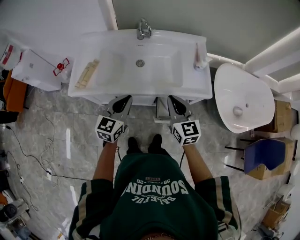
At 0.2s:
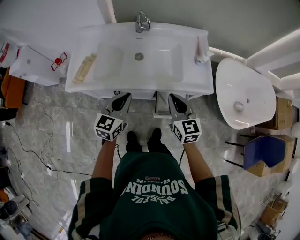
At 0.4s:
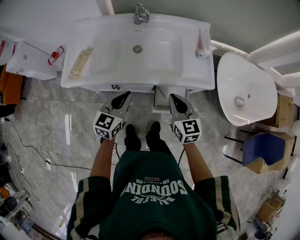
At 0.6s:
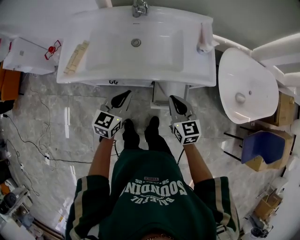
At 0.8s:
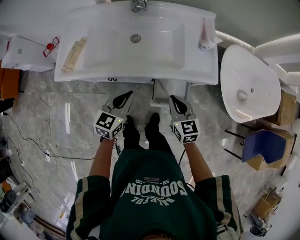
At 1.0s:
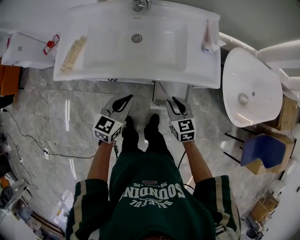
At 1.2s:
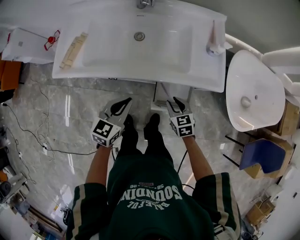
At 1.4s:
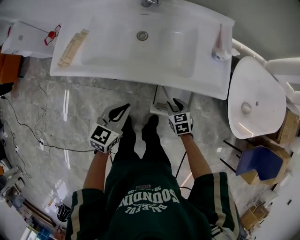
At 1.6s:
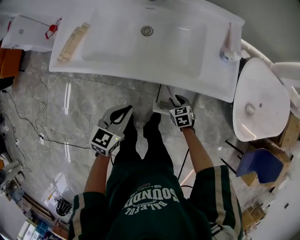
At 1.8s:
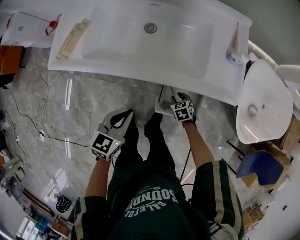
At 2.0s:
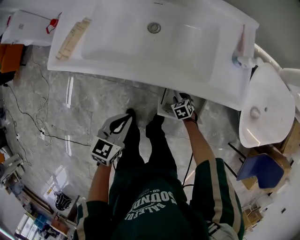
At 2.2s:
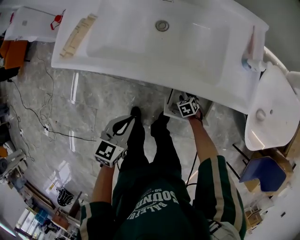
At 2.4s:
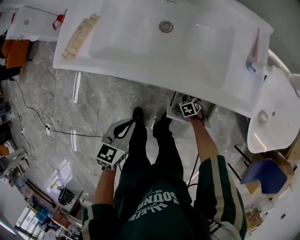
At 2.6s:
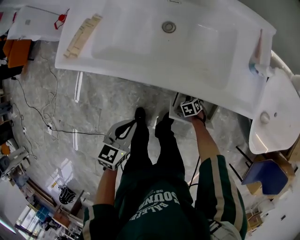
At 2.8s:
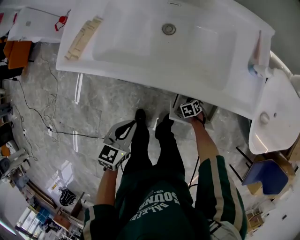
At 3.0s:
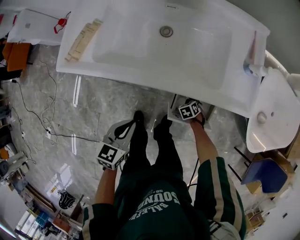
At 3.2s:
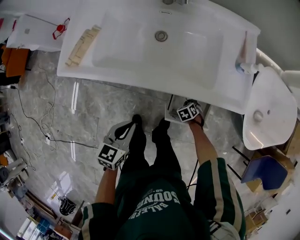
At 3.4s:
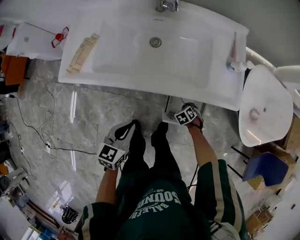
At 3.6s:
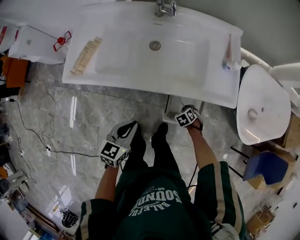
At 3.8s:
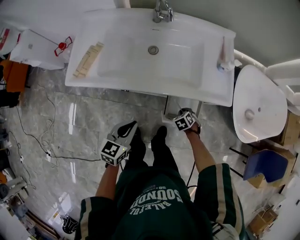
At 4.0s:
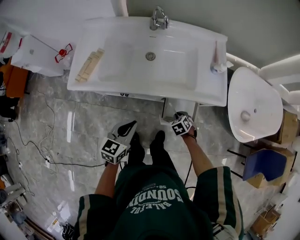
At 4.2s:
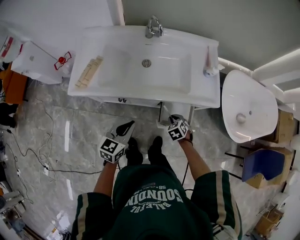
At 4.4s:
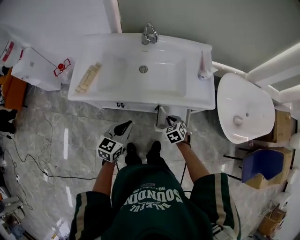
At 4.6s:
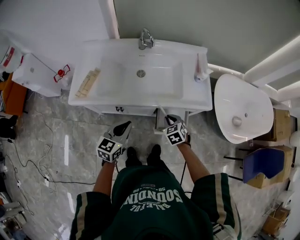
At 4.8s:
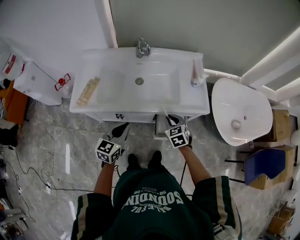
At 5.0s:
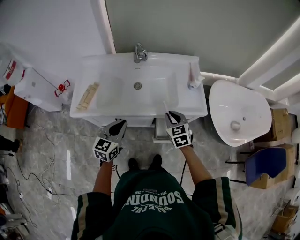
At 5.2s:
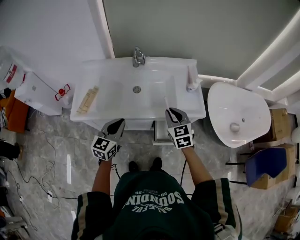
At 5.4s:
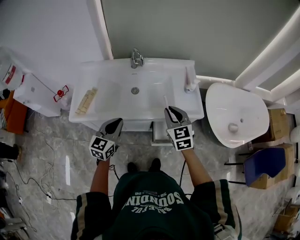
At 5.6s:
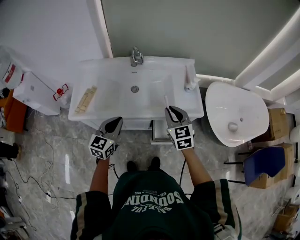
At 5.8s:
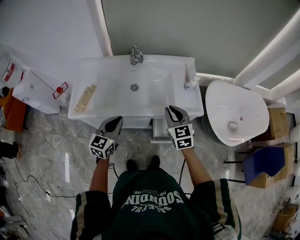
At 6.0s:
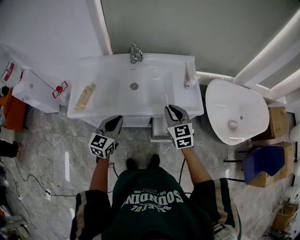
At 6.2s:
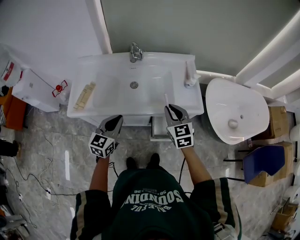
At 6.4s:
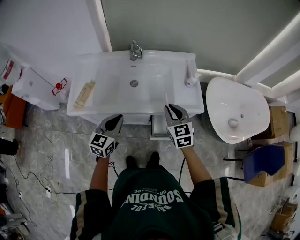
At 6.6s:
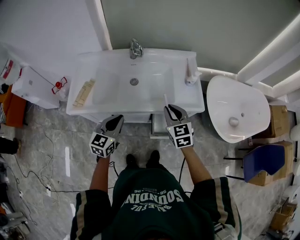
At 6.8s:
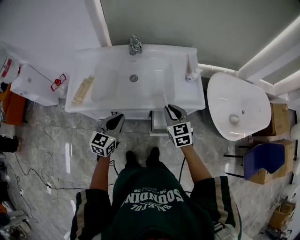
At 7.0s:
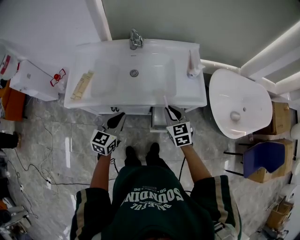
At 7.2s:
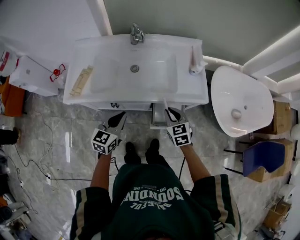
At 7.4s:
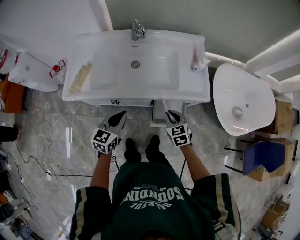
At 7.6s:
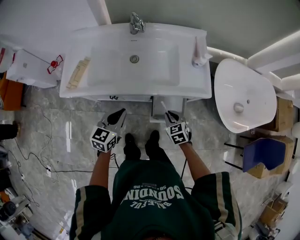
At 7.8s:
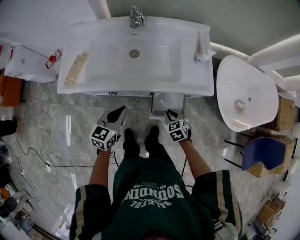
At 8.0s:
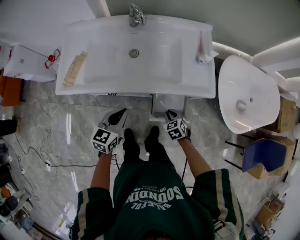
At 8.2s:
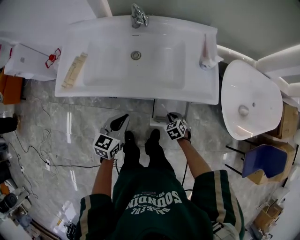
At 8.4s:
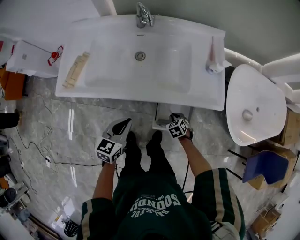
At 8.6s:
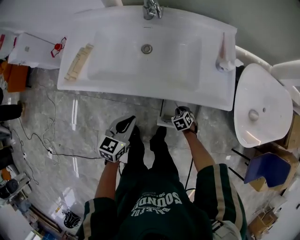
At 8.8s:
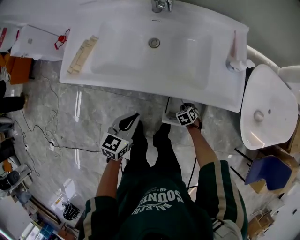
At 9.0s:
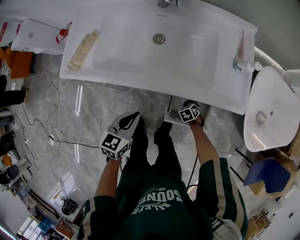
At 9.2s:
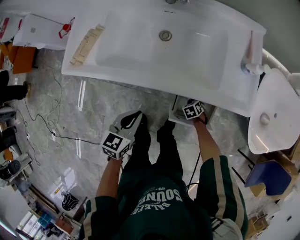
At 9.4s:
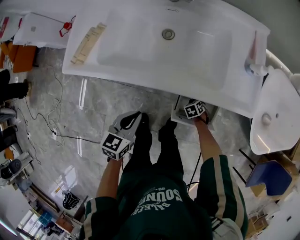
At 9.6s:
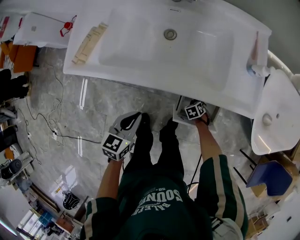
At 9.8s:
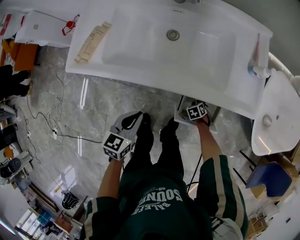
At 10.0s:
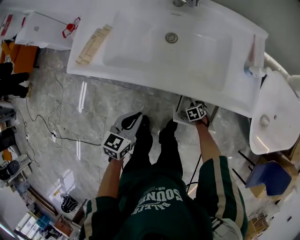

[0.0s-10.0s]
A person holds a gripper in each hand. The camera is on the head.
0.0s to 1.4s: The right gripper heads downward, covering about 35 cm, tips its fingers downward by roughly 40 degrees, and opens up; the left gripper goes some 15 cm downward.
1.4s to 2.8s: The left gripper goes about 5 cm downward. The right gripper travels downward by roughly 25 cm, and swivels roughly 30 degrees.
2.8s to 4.2s: The left gripper shifts some 10 cm upward. Meanwhile the right gripper moves upward, approximately 25 cm.
4.2s to 5.8s: The left gripper travels upward and forward by some 10 cm, while the right gripper shifts about 30 cm upward, and points its fingers roughly 40 degrees further upward.
5.8s to 7.2s: The left gripper heads downward, covering approximately 5 cm. Meanwhile the right gripper goes approximately 15 cm downward.
7.2s to 8.6s: The left gripper goes roughly 10 cm downward; the right gripper heads downward, covering roughly 35 cm, and angles its fingers downward, by about 30 degrees.
8.6s to 10.0s: The right gripper goes approximately 10 cm downward. The left gripper changes place by approximately 5 cm.

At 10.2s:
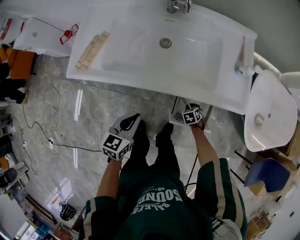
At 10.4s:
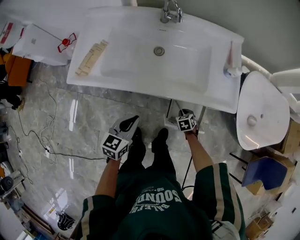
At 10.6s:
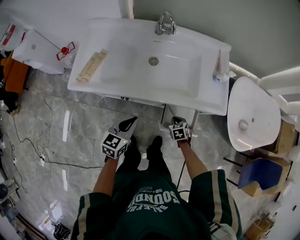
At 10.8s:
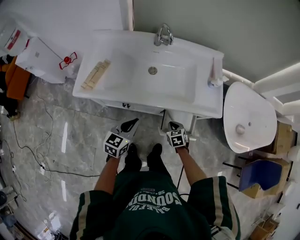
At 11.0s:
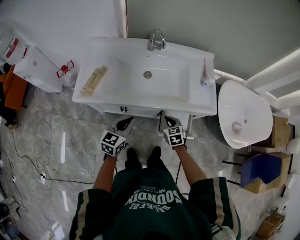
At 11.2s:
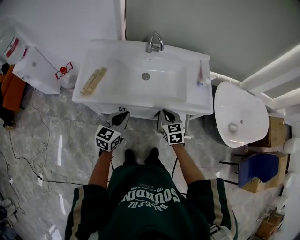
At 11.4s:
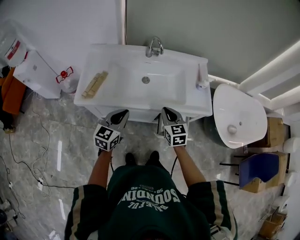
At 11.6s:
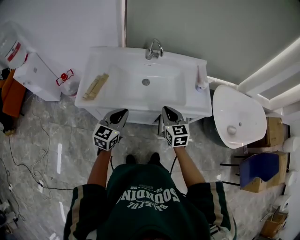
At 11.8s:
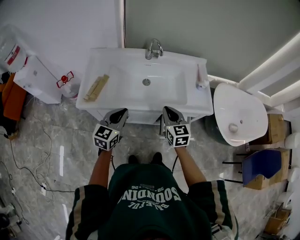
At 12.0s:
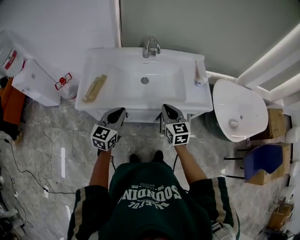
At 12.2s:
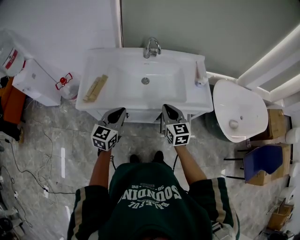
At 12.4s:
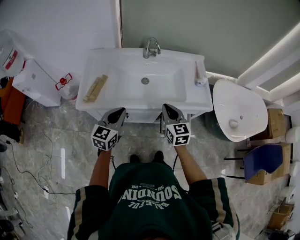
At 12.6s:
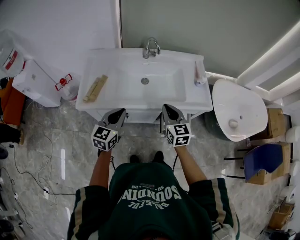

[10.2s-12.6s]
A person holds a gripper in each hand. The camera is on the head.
10.2s to 11.4s: The right gripper is displaced upward by roughly 40 cm, and points its fingers about 50 degrees further upward. Meanwhile the left gripper is displaced upward by about 15 cm, and rotates some 20 degrees.
11.4s to 12.6s: The grippers move only a little.

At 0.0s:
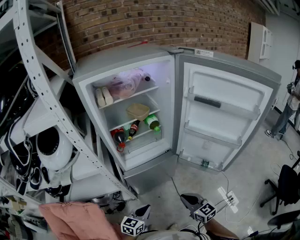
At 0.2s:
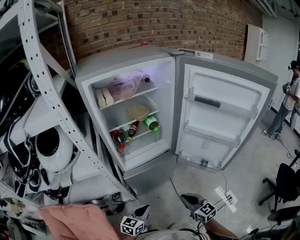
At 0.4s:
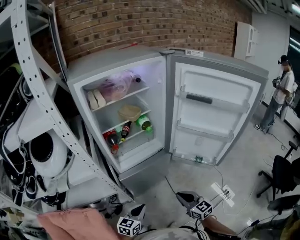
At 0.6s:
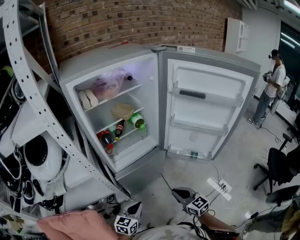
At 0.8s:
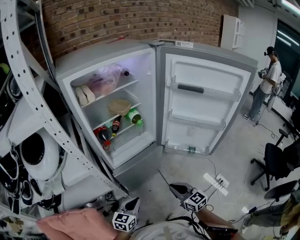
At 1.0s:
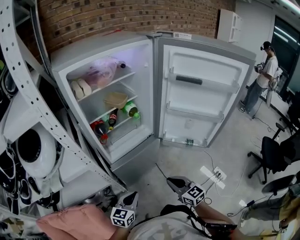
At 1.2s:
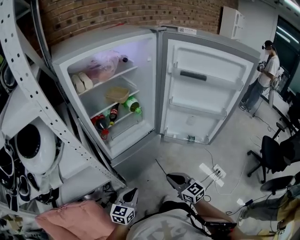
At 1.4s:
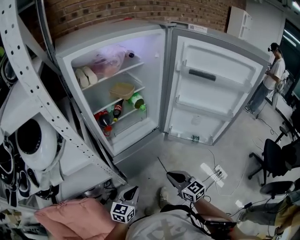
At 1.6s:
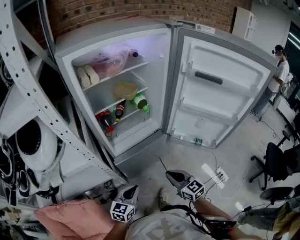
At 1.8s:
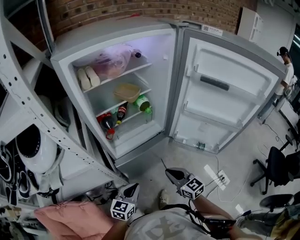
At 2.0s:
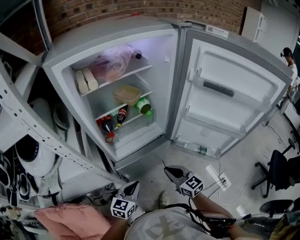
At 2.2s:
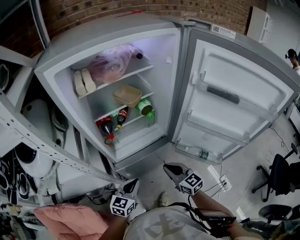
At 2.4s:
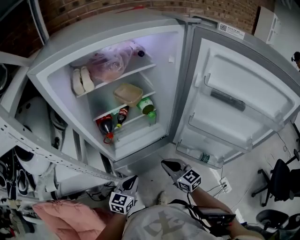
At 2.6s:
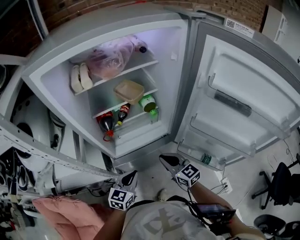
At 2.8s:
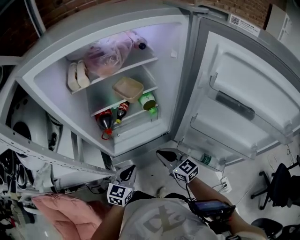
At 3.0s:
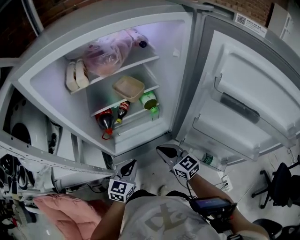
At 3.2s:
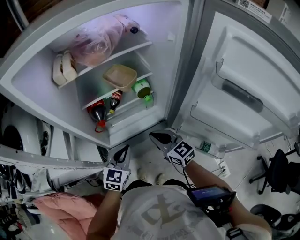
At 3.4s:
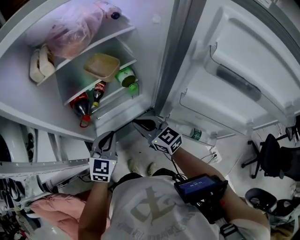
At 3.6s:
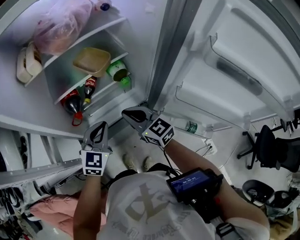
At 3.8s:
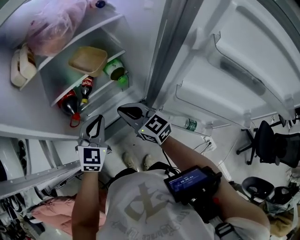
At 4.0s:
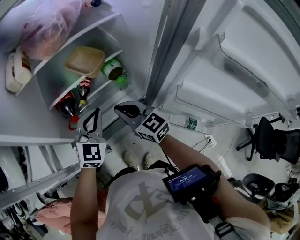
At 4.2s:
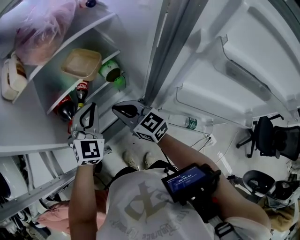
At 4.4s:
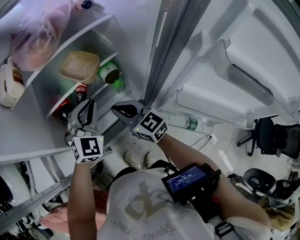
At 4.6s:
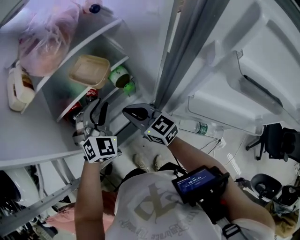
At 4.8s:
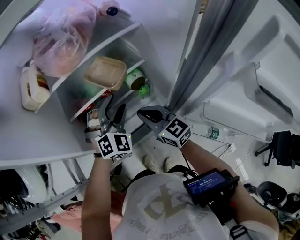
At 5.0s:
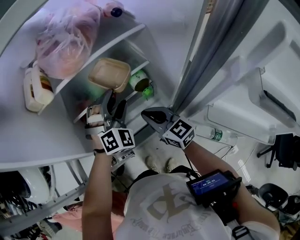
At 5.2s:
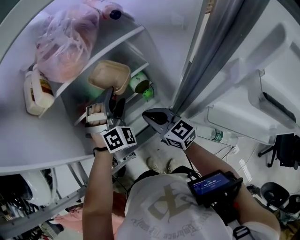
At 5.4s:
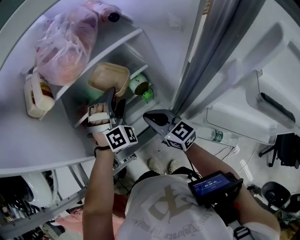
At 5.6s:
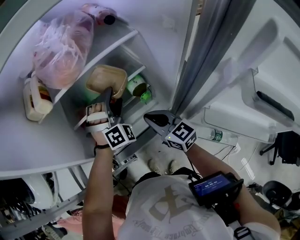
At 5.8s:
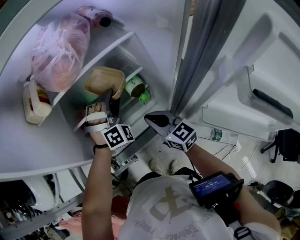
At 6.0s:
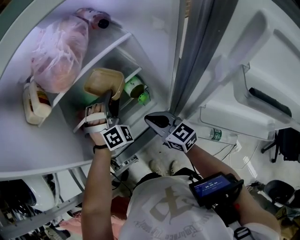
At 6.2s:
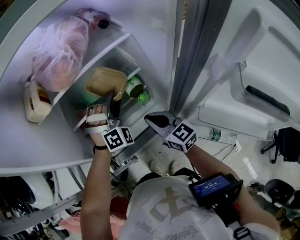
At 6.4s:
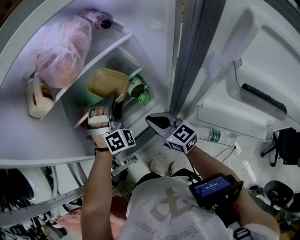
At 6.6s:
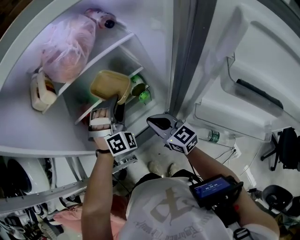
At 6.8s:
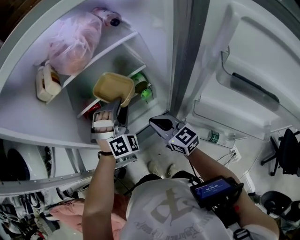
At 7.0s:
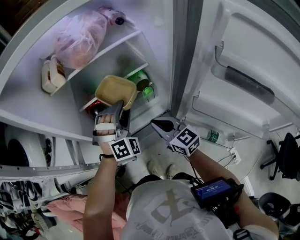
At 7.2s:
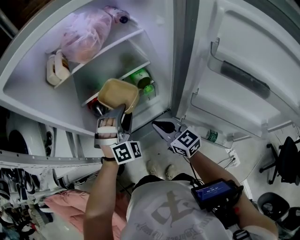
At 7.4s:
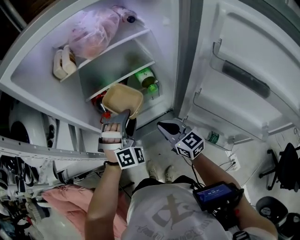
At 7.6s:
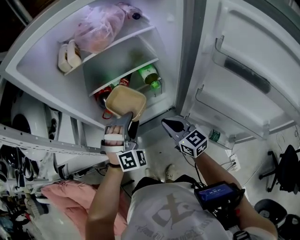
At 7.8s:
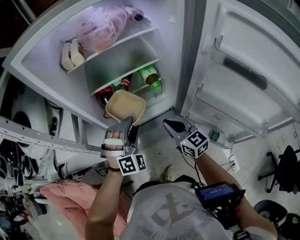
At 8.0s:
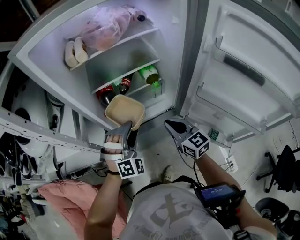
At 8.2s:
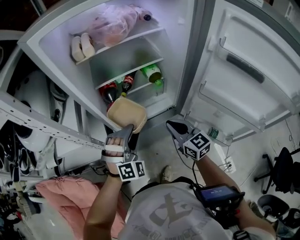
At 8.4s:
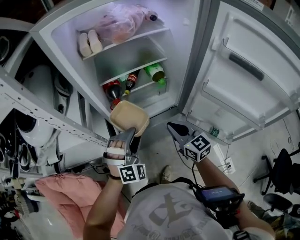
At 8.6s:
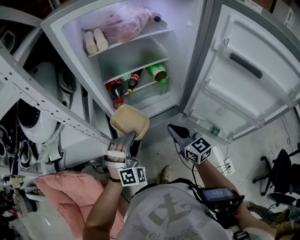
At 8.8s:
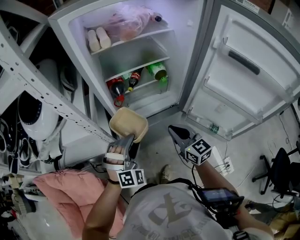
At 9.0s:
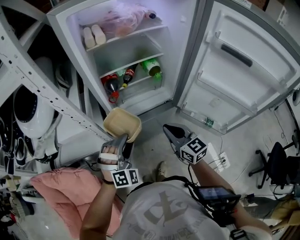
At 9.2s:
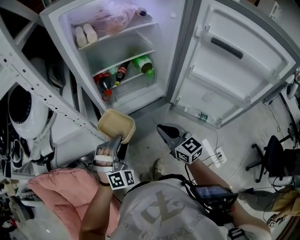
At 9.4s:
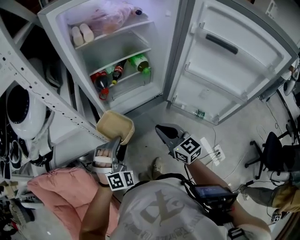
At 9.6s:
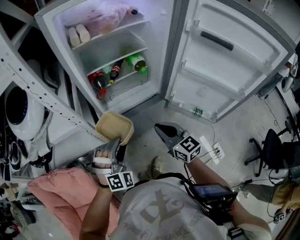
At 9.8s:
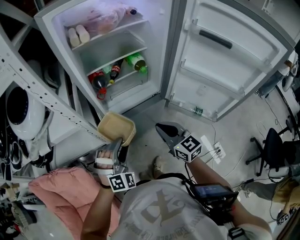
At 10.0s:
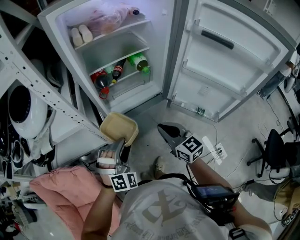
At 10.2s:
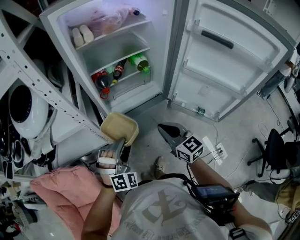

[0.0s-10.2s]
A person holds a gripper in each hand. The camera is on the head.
0.0s to 1.4s: The two grippers go approximately 10 cm to the left.
1.4s to 3.0s: Both grippers move forward, approximately 25 cm.
3.0s to 4.4s: The left gripper shifts about 20 cm forward, and swivels roughly 40 degrees; the right gripper travels forward by some 15 cm.
4.4s to 5.8s: The left gripper goes approximately 10 cm forward, swivels some 40 degrees, and opens.
5.8s to 7.2s: Both grippers move backward, about 15 cm.
7.2s to 8.8s: The right gripper goes about 15 cm backward and to the left. Meanwhile the left gripper goes roughly 25 cm backward and to the left.
8.8s to 10.2s: The two grippers go roughly 10 cm backward.

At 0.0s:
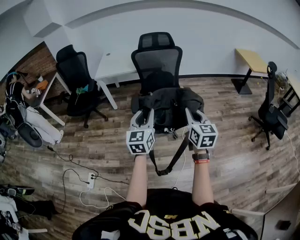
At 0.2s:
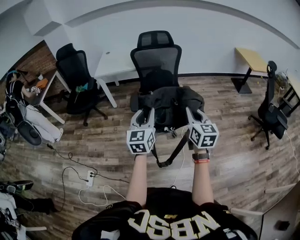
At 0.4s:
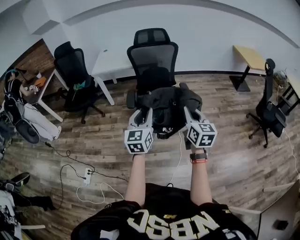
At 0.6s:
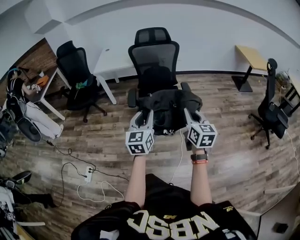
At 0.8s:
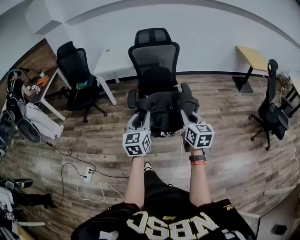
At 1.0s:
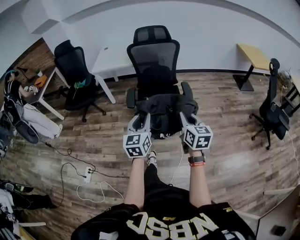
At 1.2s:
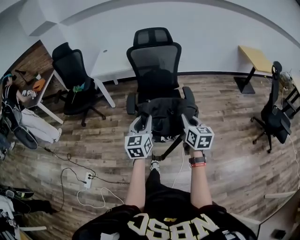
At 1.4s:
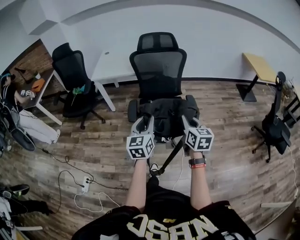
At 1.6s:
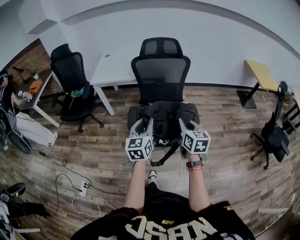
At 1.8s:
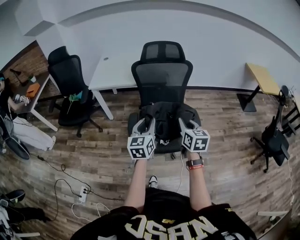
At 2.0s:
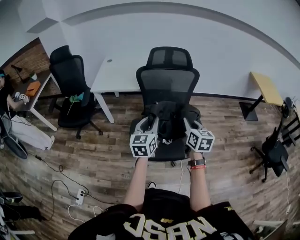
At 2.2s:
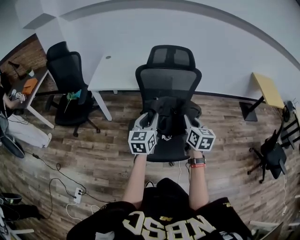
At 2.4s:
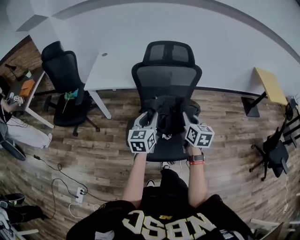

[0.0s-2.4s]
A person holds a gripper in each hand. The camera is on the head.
0.0s to 1.2s: The right gripper is displaced downward and forward by roughly 10 cm. The left gripper is displaced downward by about 5 cm.
1.2s to 2.4s: The grippers both shift forward by some 35 cm.
